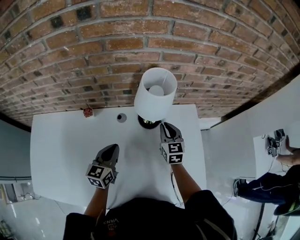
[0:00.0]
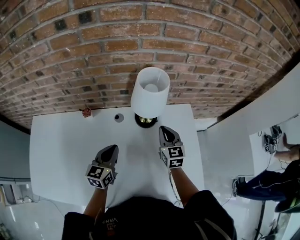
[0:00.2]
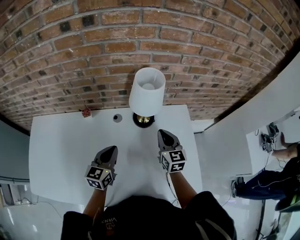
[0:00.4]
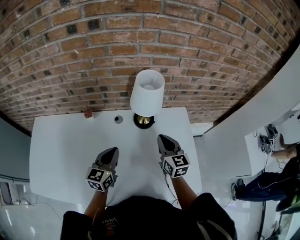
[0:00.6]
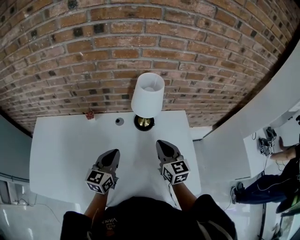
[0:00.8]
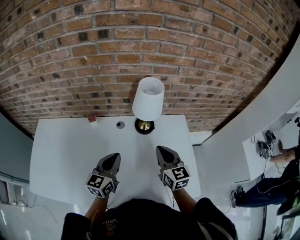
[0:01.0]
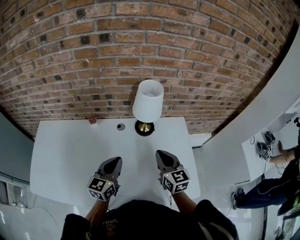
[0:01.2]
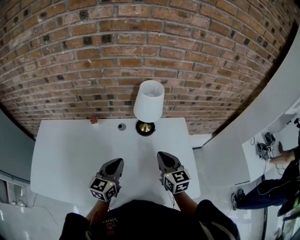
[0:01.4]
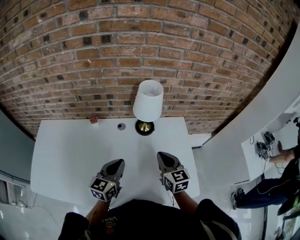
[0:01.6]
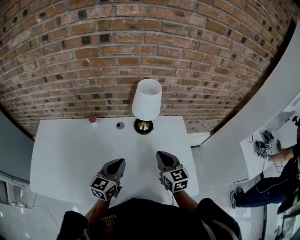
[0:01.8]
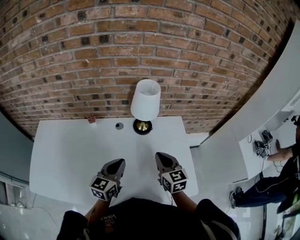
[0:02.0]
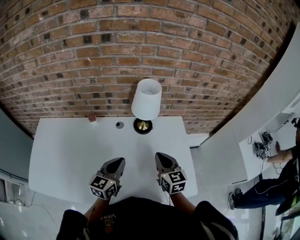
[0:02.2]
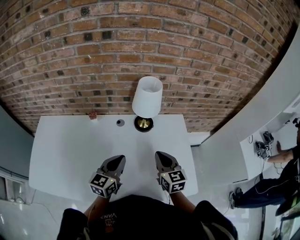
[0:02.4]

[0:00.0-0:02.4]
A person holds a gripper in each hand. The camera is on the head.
0:00.0 to 0:01.2: The right gripper moves backward and upward, approximately 20 cm, while the left gripper heads backward and upward, covering about 15 cm.
0:01.2 to 0:02.4: The grippers move only a little.

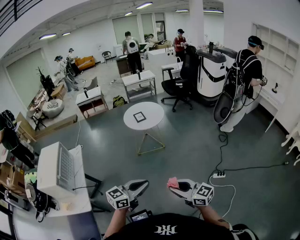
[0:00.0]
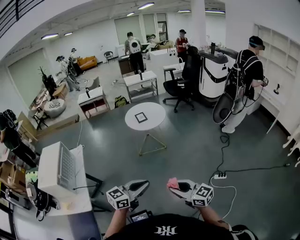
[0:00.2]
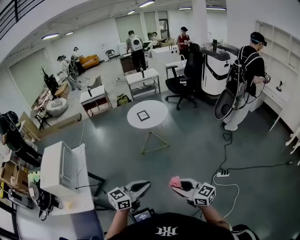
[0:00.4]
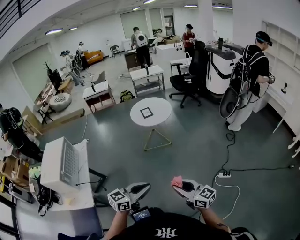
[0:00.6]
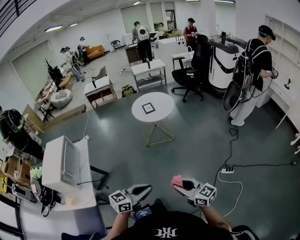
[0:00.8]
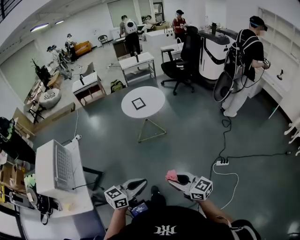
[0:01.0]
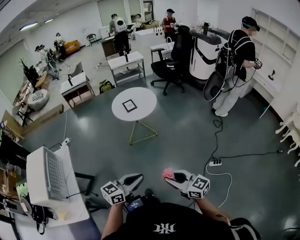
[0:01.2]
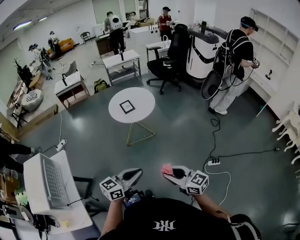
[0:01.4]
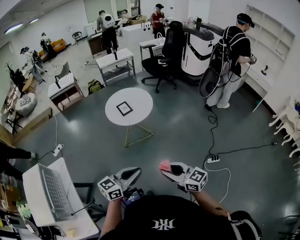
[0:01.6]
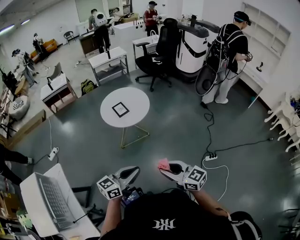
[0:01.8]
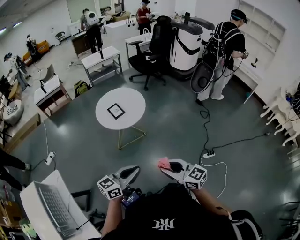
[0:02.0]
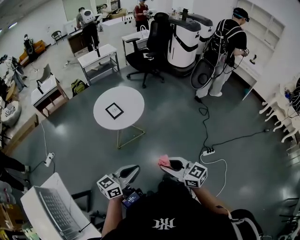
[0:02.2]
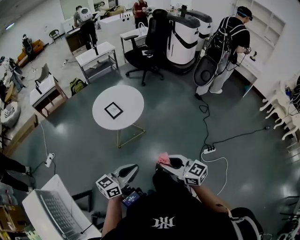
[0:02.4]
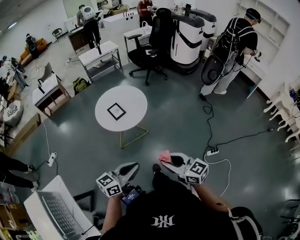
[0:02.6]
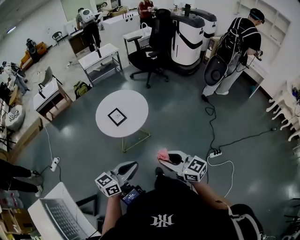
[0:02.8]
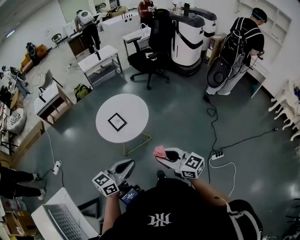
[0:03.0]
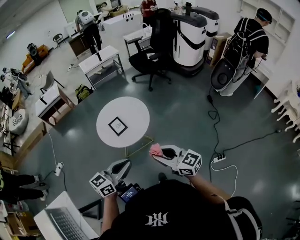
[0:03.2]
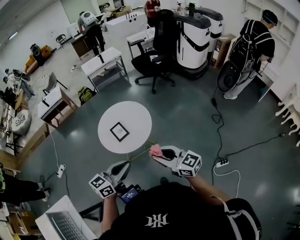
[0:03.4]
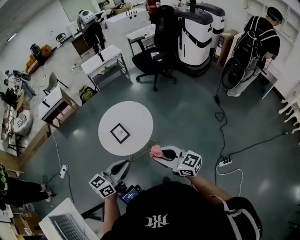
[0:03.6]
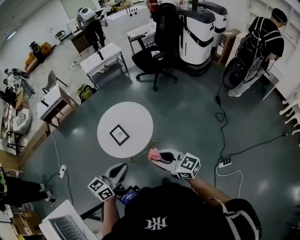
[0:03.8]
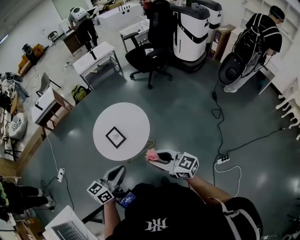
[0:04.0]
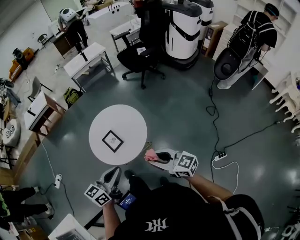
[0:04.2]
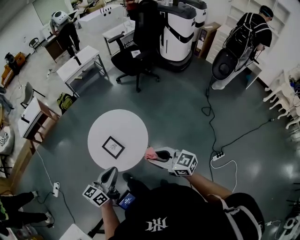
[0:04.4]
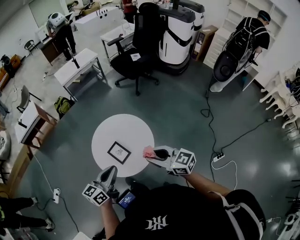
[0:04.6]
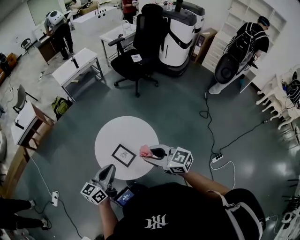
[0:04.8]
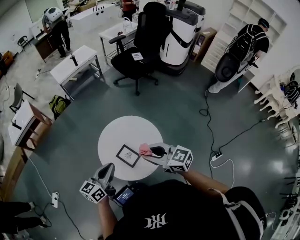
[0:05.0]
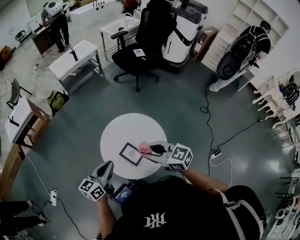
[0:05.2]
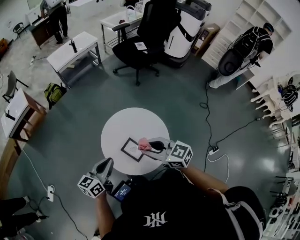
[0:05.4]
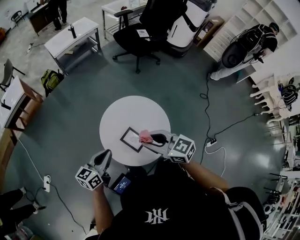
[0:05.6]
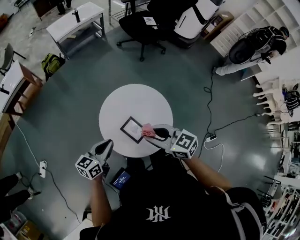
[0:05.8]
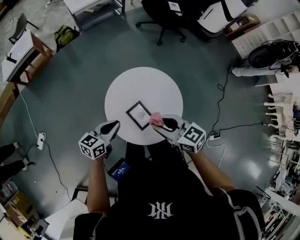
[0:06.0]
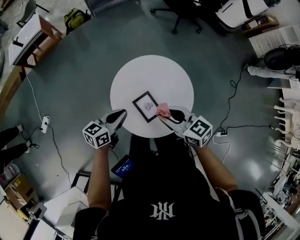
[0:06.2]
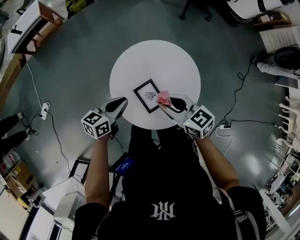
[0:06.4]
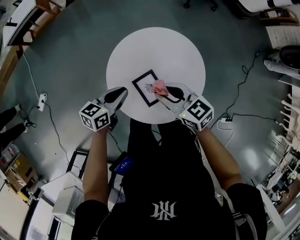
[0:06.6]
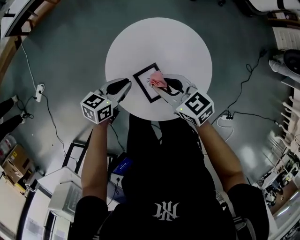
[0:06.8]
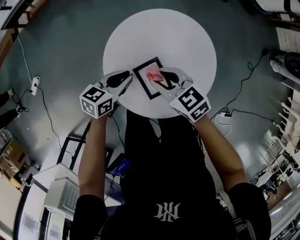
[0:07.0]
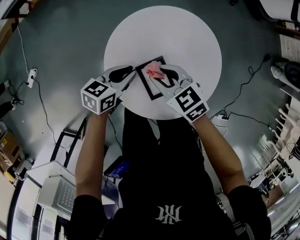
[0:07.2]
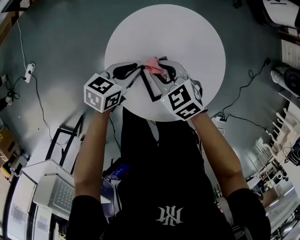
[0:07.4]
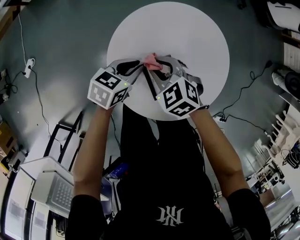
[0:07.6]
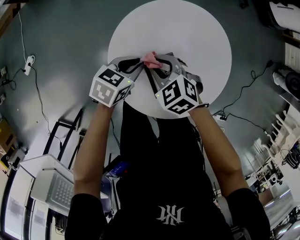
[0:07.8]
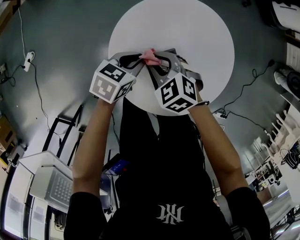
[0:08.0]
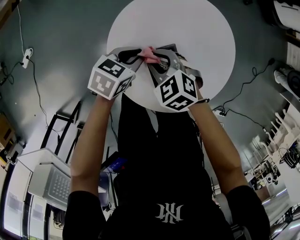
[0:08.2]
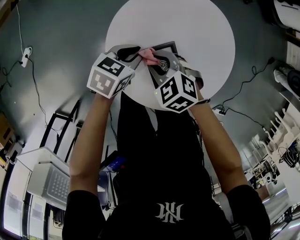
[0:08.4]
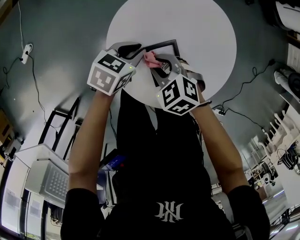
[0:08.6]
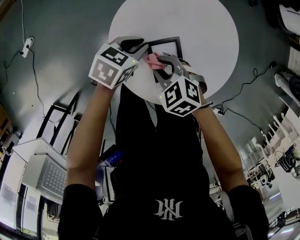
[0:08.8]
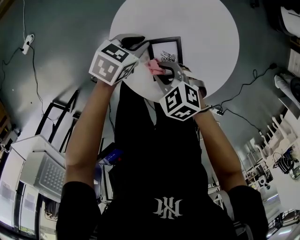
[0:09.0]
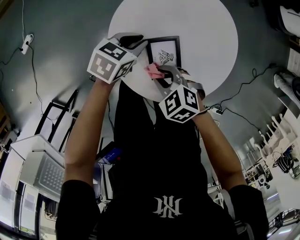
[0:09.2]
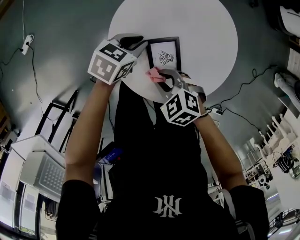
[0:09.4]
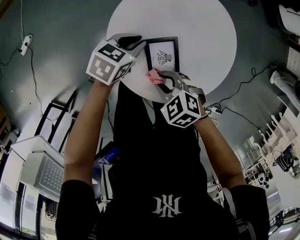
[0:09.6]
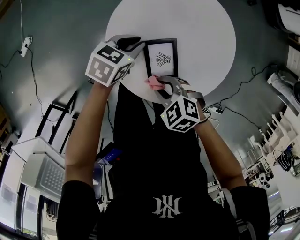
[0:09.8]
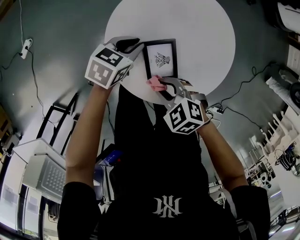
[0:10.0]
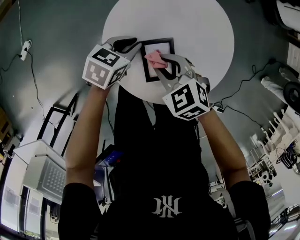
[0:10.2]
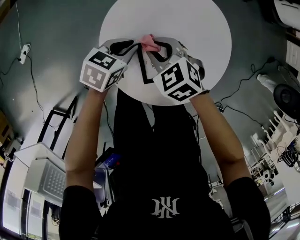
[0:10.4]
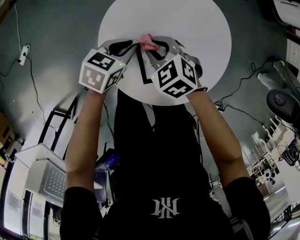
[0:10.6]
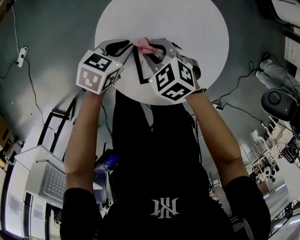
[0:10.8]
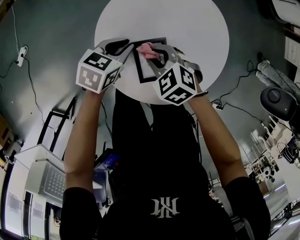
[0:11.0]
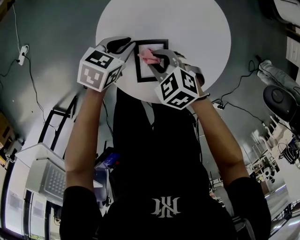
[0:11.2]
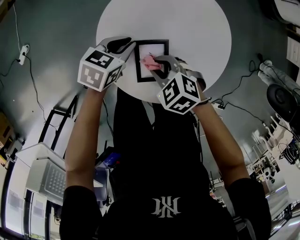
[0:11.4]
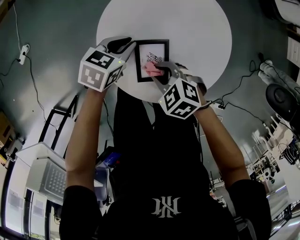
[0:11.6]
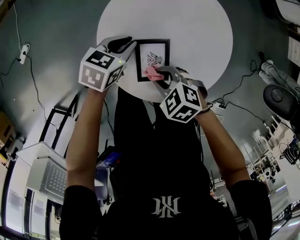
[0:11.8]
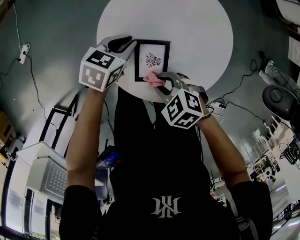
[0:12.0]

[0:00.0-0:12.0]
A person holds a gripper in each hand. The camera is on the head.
0:00.0 to 0:01.6: Both grippers travel together forward, some 25 cm.
0:01.6 to 0:03.0: The two grippers go roughly 25 cm forward.
0:03.0 to 0:04.4: The two grippers go roughly 30 cm forward.
0:04.4 to 0:06.0: The right gripper goes approximately 30 cm to the left and forward. The left gripper heads forward, to the left and downward, covering roughly 35 cm.
0:06.0 to 0:07.6: Both grippers travel together downward, roughly 25 cm. The right gripper turns by about 40 degrees.
0:07.6 to 0:09.0: The right gripper ends up some 10 cm from where it was.
0:09.0 to 0:10.4: The right gripper ends up some 10 cm from where it was.
0:10.4 to 0:12.0: The right gripper changes place by about 15 cm.

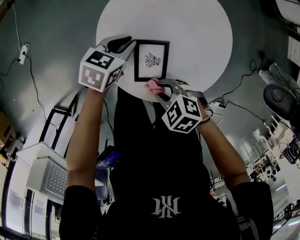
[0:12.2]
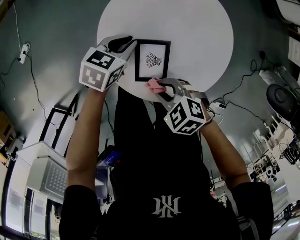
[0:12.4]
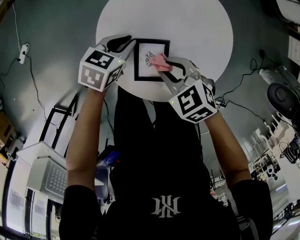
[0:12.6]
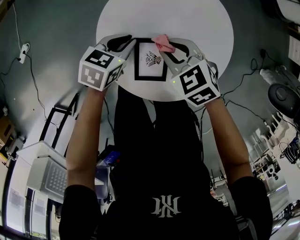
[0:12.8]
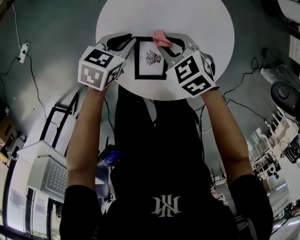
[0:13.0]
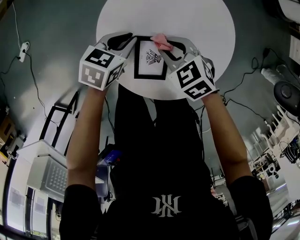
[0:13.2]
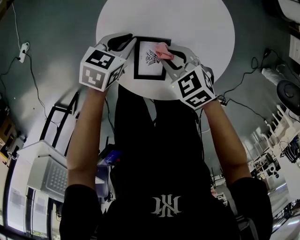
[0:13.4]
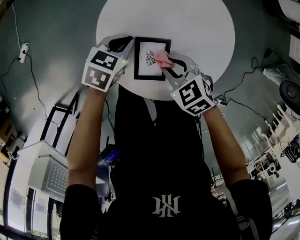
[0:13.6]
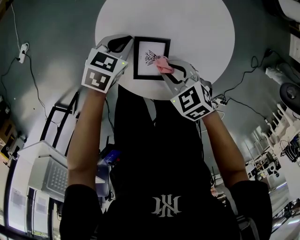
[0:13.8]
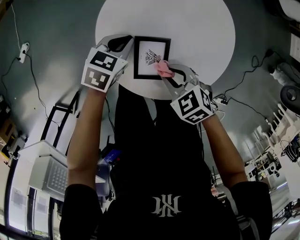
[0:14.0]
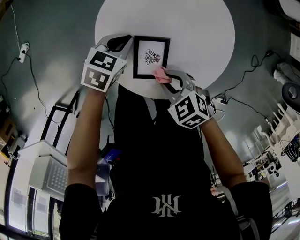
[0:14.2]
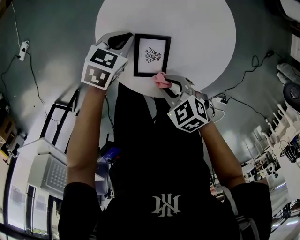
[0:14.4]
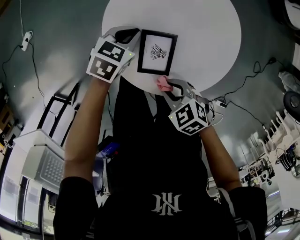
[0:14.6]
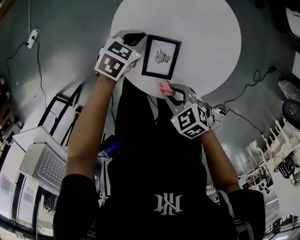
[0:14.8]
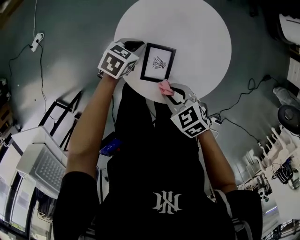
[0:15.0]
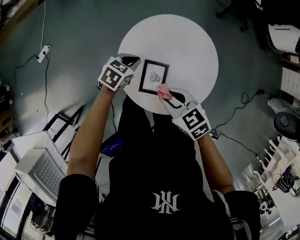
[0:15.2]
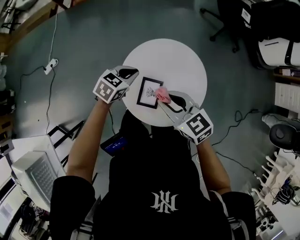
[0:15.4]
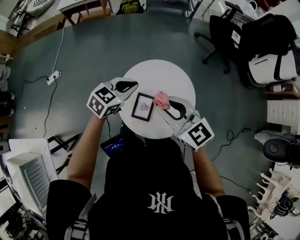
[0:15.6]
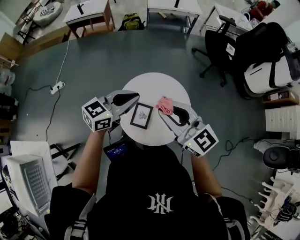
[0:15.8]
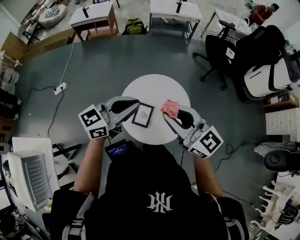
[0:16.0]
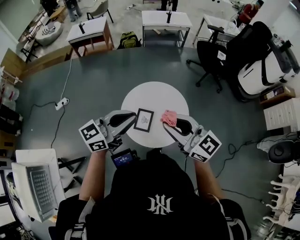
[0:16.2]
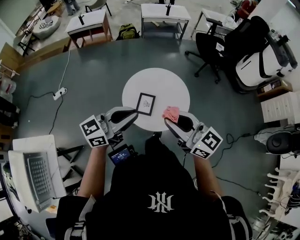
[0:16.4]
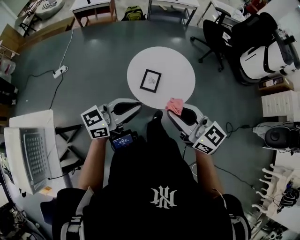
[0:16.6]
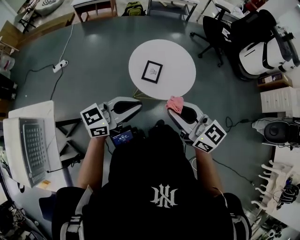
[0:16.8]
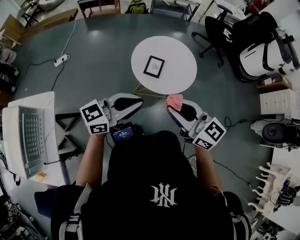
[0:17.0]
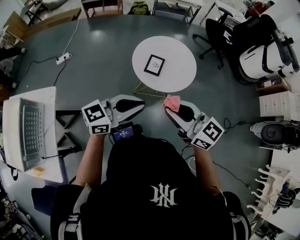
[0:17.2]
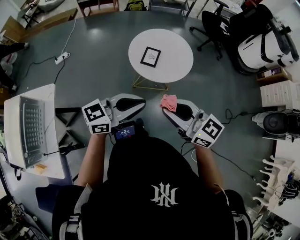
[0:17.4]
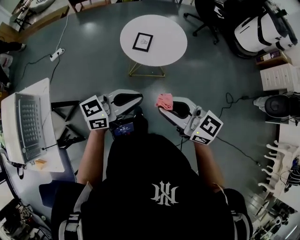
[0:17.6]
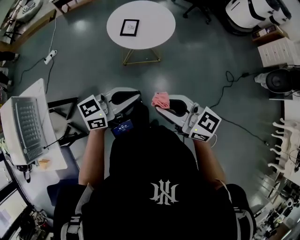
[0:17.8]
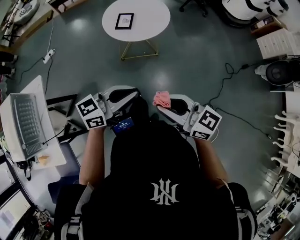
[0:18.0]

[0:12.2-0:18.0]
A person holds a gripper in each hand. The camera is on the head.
0:12.2 to 0:13.6: The right gripper changes its angle by roughly 20 degrees.
0:13.6 to 0:15.0: The right gripper changes place by approximately 10 cm.
0:15.0 to 0:16.6: Both grippers travel together upward, roughly 35 cm. The left gripper points its fingers roughly 60 degrees further upward. Meanwhile the right gripper angles its fingers upward, by roughly 50 degrees.
0:16.6 to 0:18.0: The left gripper changes place by approximately 40 cm; the right gripper shifts by approximately 40 cm.

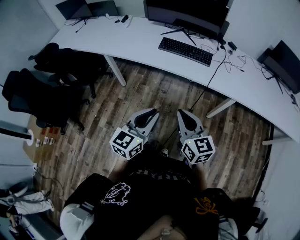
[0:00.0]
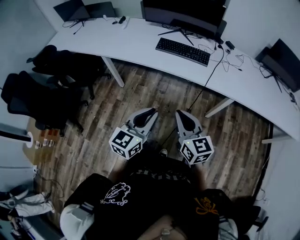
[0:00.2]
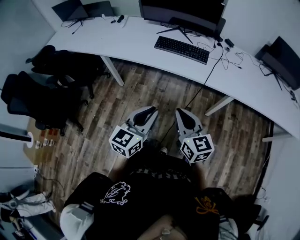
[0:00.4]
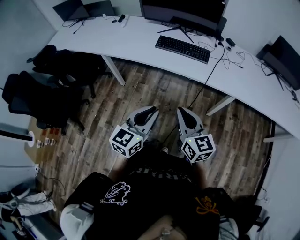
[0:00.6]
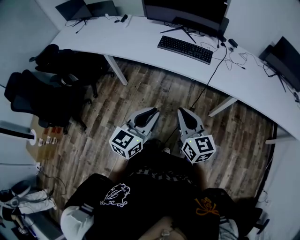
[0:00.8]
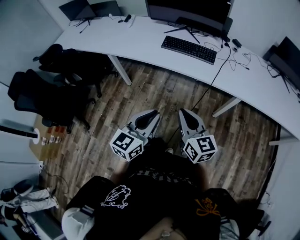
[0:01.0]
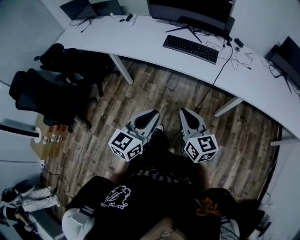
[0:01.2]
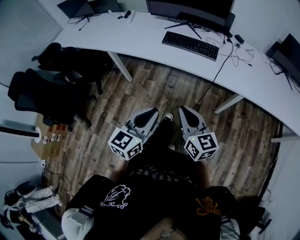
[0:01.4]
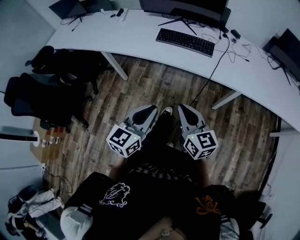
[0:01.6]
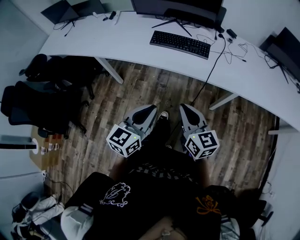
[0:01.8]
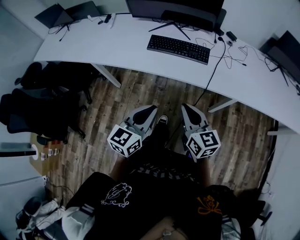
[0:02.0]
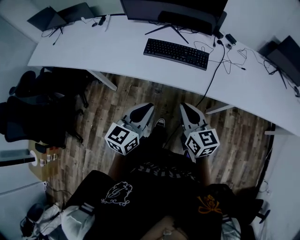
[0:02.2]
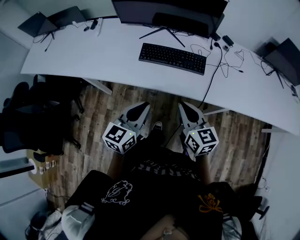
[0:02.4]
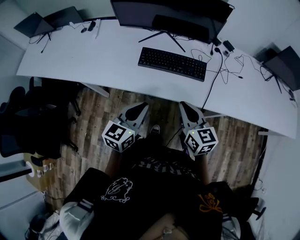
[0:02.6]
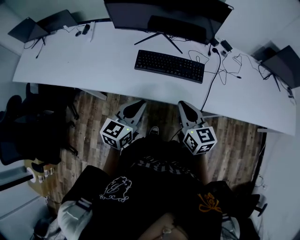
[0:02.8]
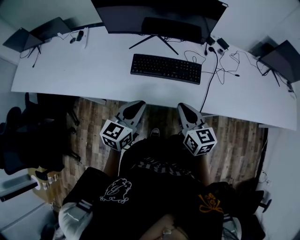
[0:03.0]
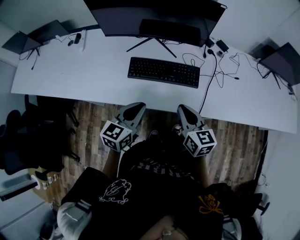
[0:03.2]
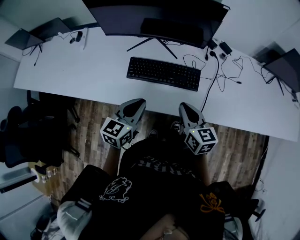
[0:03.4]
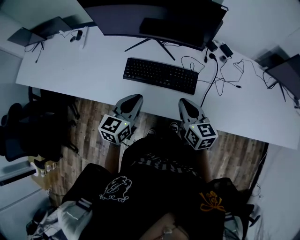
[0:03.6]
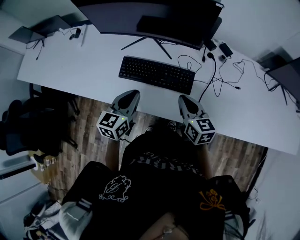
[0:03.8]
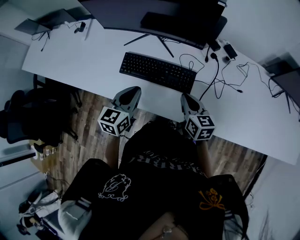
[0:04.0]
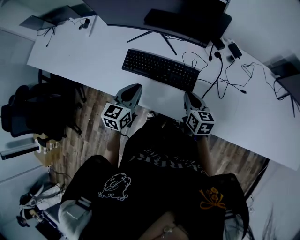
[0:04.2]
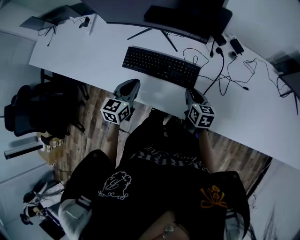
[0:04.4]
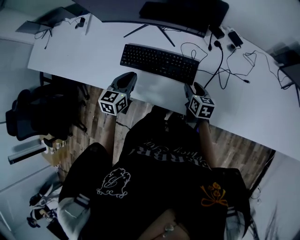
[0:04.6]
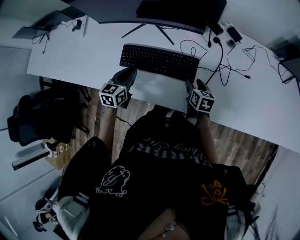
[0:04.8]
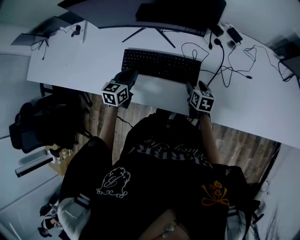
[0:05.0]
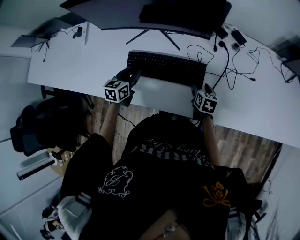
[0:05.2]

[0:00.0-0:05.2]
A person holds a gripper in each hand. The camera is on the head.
0:00.0 to 0:01.8: The two grippers go about 10 cm forward.
0:01.8 to 0:03.4: The two grippers go about 35 cm forward.
0:03.4 to 0:05.2: The left gripper shifts about 20 cm forward and downward. The right gripper goes some 30 cm downward, forward and to the right, swivels about 30 degrees, and opens up.
